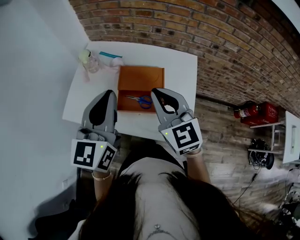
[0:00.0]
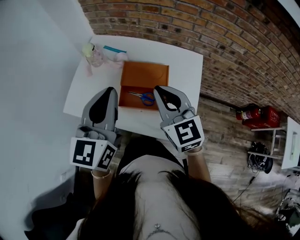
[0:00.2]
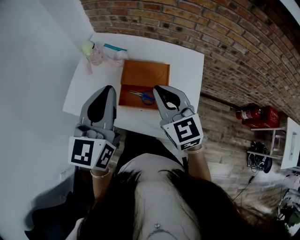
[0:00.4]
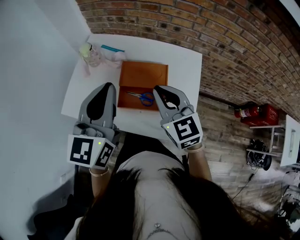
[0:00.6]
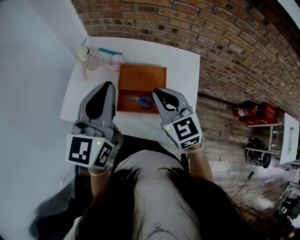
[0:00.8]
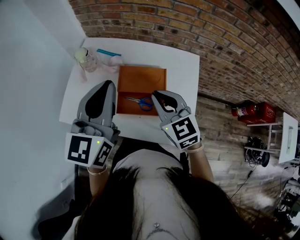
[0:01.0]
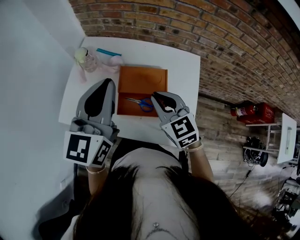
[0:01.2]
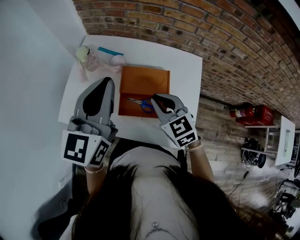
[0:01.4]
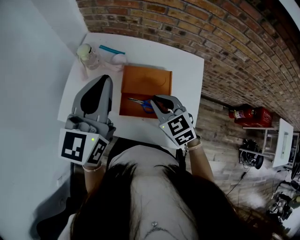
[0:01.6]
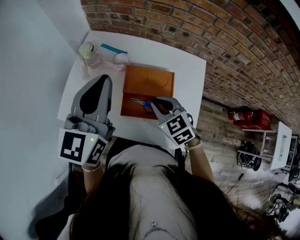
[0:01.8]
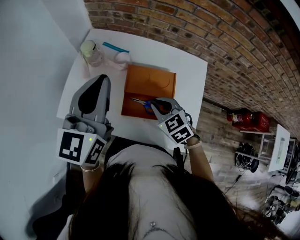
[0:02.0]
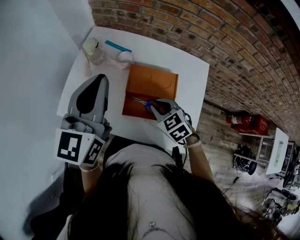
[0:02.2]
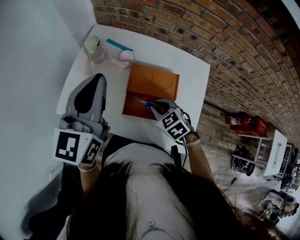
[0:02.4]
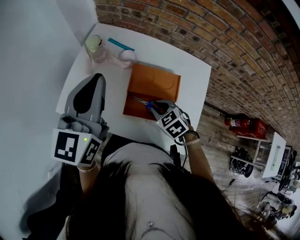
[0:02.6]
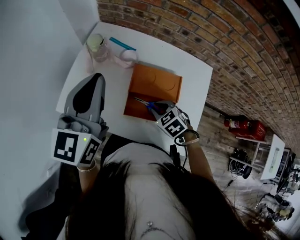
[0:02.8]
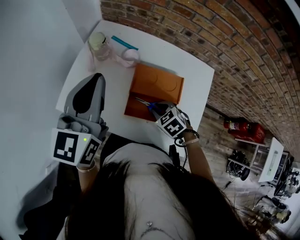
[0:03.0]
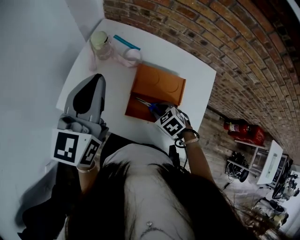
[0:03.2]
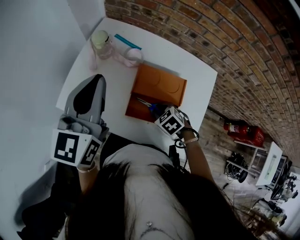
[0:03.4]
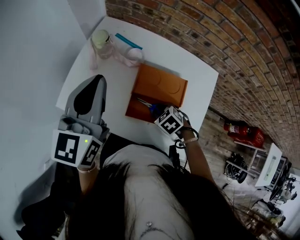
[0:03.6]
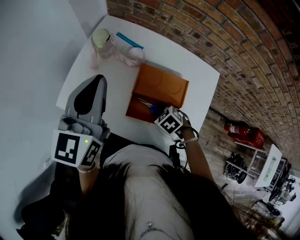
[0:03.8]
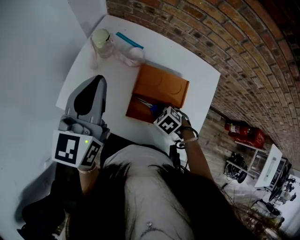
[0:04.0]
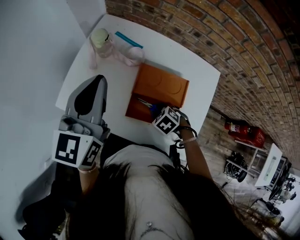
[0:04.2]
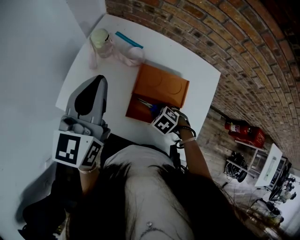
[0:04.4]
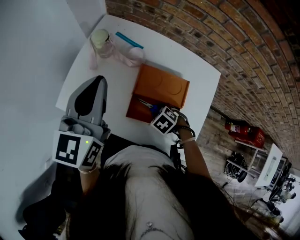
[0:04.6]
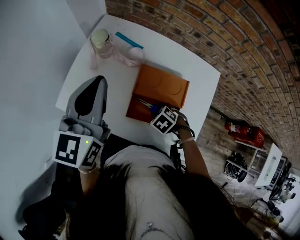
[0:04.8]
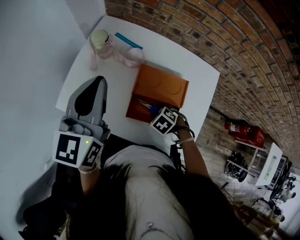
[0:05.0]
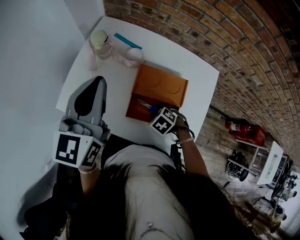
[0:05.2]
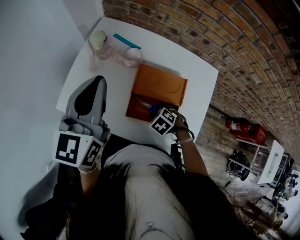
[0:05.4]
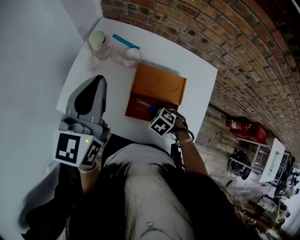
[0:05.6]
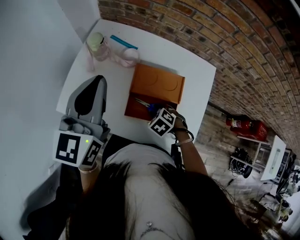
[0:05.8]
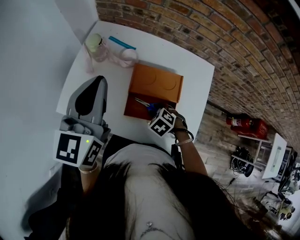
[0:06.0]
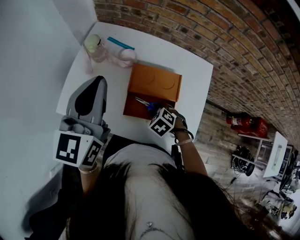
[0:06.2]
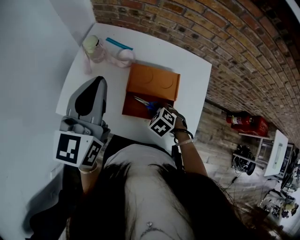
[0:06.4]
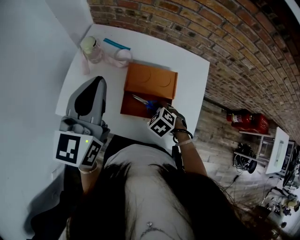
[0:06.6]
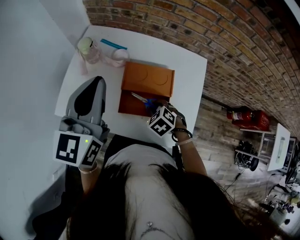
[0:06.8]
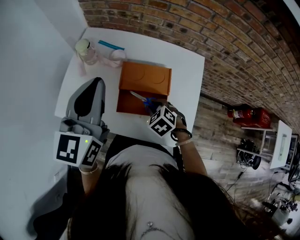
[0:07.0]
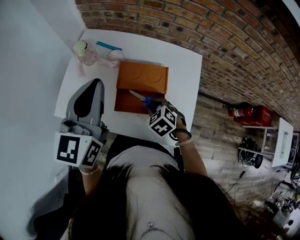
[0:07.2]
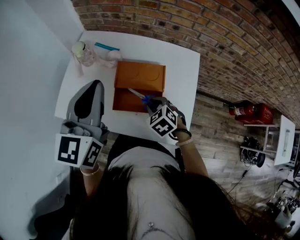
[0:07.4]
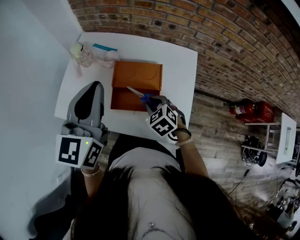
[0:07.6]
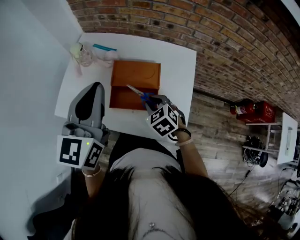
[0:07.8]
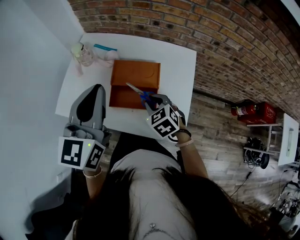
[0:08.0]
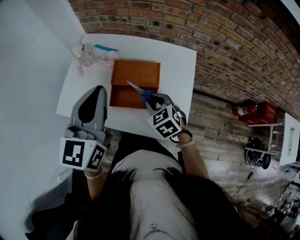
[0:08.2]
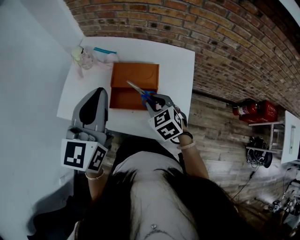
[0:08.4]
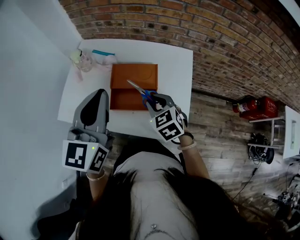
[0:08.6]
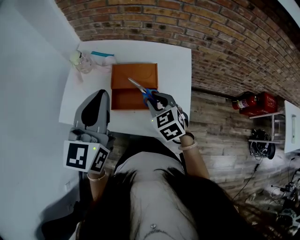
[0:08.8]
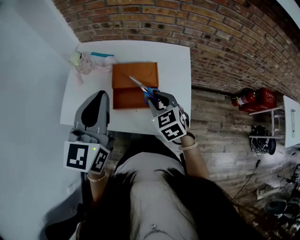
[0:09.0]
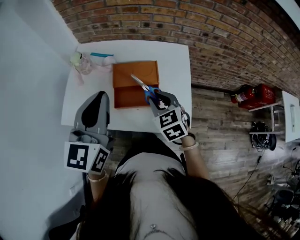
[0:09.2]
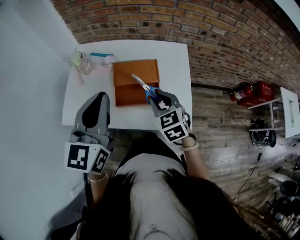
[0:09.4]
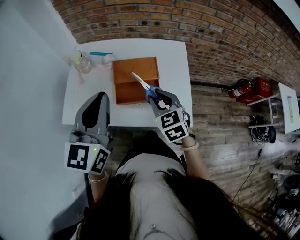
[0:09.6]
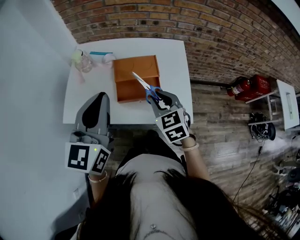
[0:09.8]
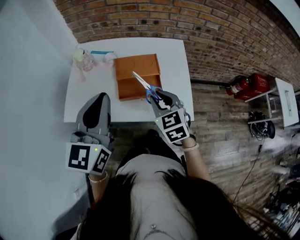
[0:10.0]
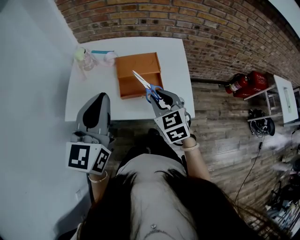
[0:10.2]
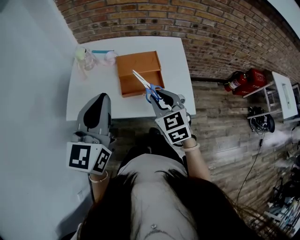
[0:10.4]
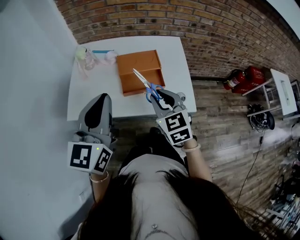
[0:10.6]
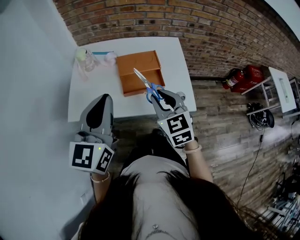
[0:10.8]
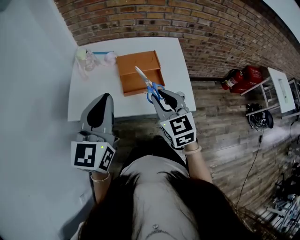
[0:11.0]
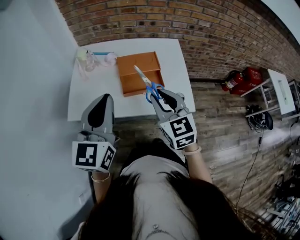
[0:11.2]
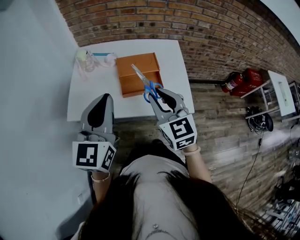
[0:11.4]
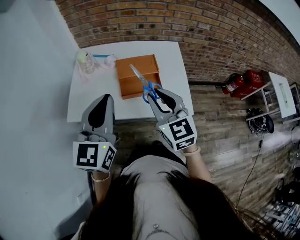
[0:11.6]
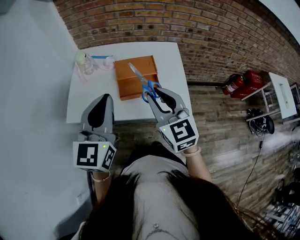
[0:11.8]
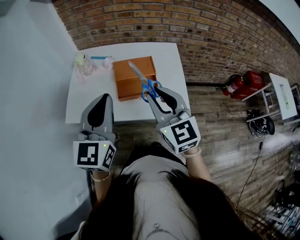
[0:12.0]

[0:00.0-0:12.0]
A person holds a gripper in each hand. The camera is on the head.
0:00.0 to 0:01.6: The left gripper shifts approximately 10 cm forward. The right gripper shifts some 15 cm downward and forward, and rotates about 20 degrees.
0:01.6 to 0:03.0: The left gripper moves to the left, roughly 5 cm, while the right gripper heads downward, covering some 15 cm, and tips its fingers downward by approximately 30 degrees.
0:03.0 to 0:04.4: The right gripper heads downward, covering about 5 cm.
0:04.4 to 0:06.0: There are only small adjustments of the grippers.
0:06.0 to 0:07.6: The left gripper moves approximately 10 cm, while the right gripper moves upward, roughly 10 cm, and rotates about 20 degrees.
0:07.6 to 0:09.0: The right gripper moves upward, roughly 10 cm, and changes its angle by some 20 degrees; the left gripper is displaced backward by some 5 cm.
0:09.0 to 0:10.4: Both grippers travel together backward and to the left, roughly 10 cm.
0:10.4 to 0:12.0: The right gripper goes roughly 10 cm upward, and rotates roughly 20 degrees.

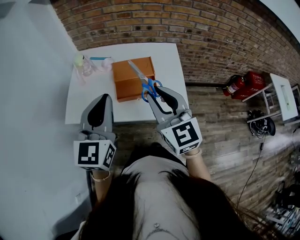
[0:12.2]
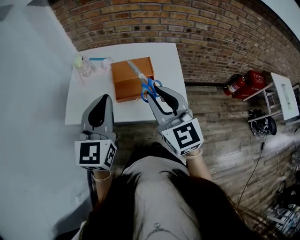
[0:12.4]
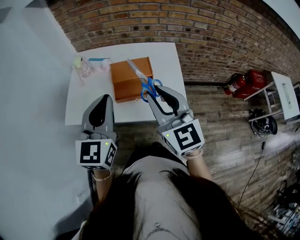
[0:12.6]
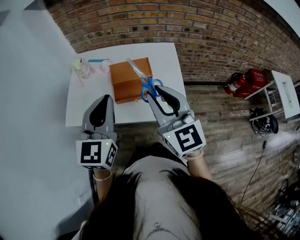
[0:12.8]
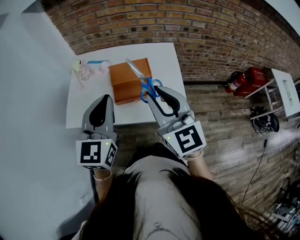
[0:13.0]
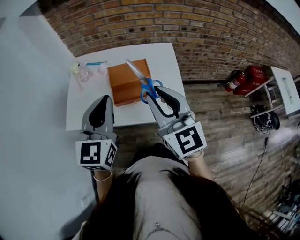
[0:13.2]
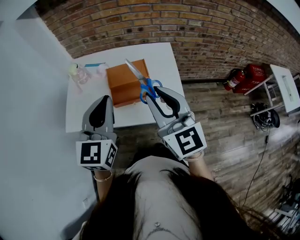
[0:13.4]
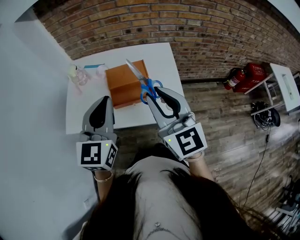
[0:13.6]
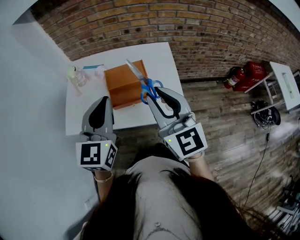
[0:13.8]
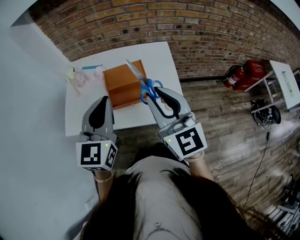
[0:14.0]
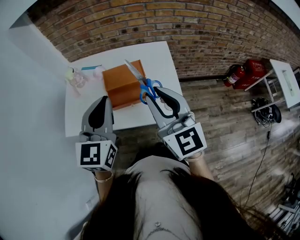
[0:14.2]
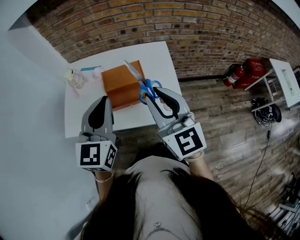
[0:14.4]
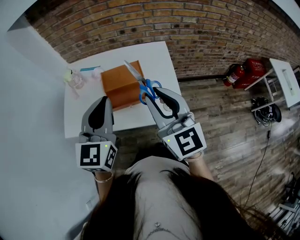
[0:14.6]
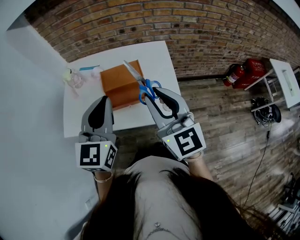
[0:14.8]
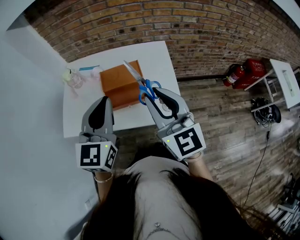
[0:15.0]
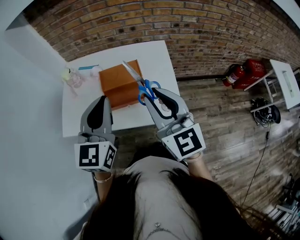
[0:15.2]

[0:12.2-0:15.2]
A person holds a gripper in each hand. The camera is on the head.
0:12.2 to 0:13.8: The left gripper changes place by some 5 cm, while the right gripper shifts by roughly 5 cm.
0:13.8 to 0:15.2: The grippers make only small movements.

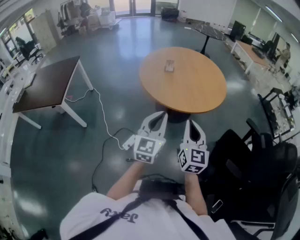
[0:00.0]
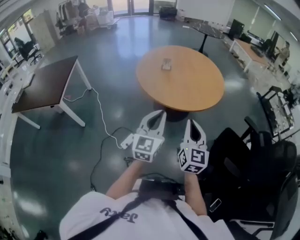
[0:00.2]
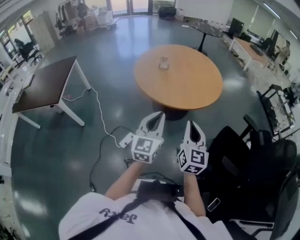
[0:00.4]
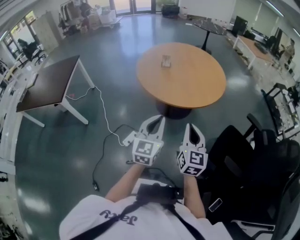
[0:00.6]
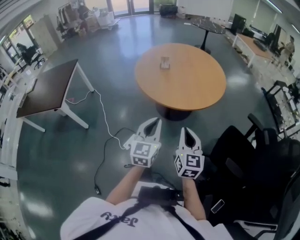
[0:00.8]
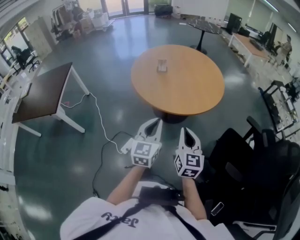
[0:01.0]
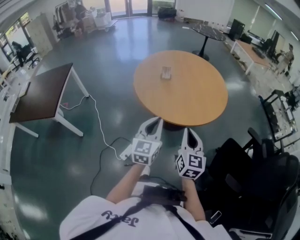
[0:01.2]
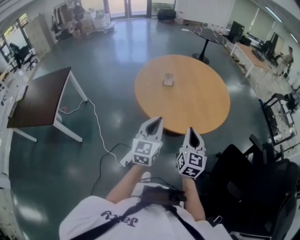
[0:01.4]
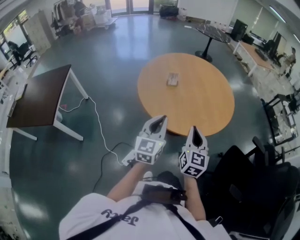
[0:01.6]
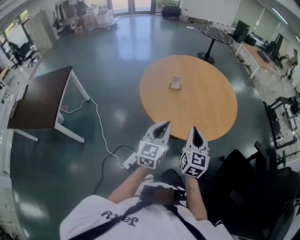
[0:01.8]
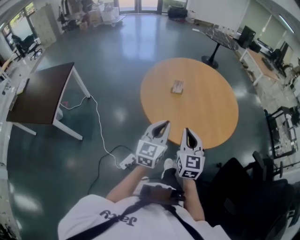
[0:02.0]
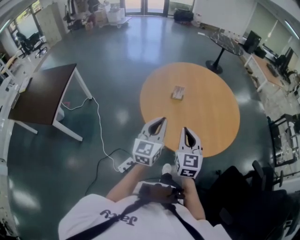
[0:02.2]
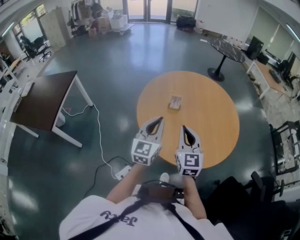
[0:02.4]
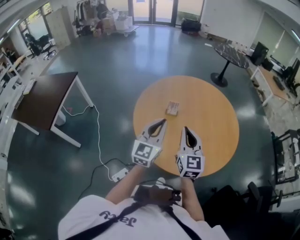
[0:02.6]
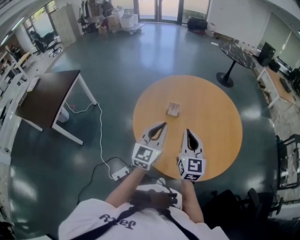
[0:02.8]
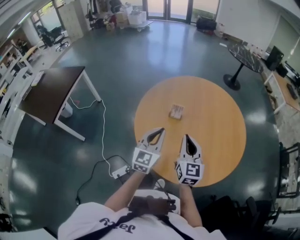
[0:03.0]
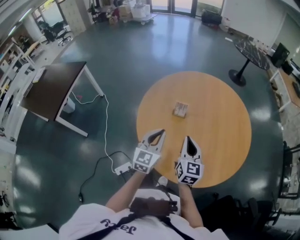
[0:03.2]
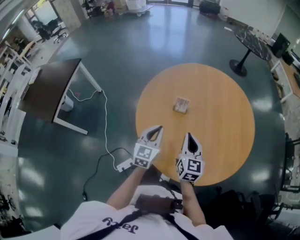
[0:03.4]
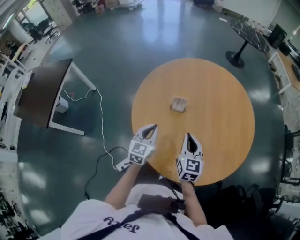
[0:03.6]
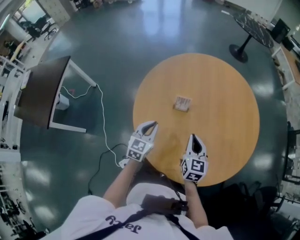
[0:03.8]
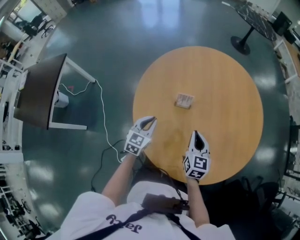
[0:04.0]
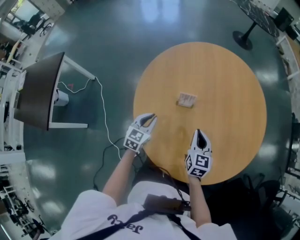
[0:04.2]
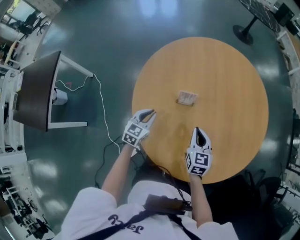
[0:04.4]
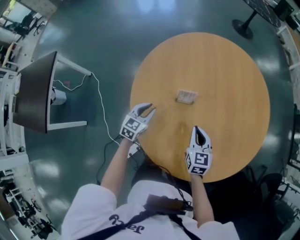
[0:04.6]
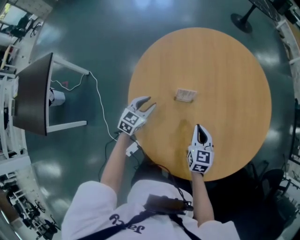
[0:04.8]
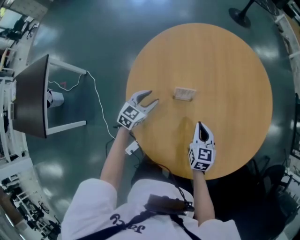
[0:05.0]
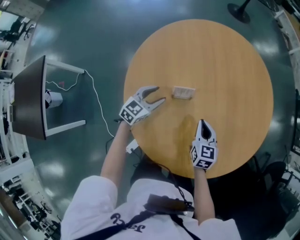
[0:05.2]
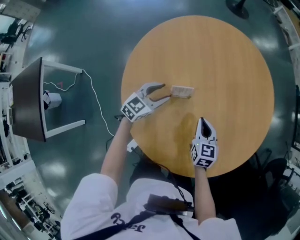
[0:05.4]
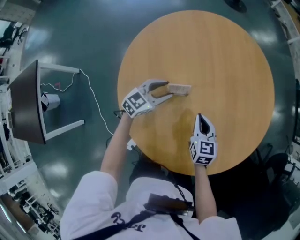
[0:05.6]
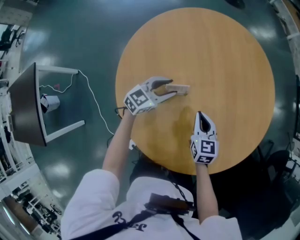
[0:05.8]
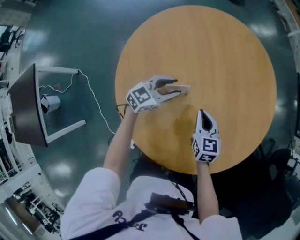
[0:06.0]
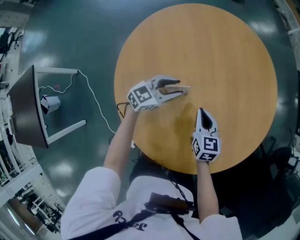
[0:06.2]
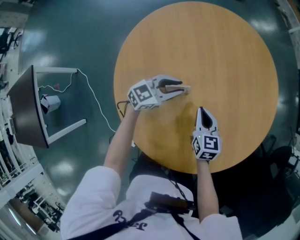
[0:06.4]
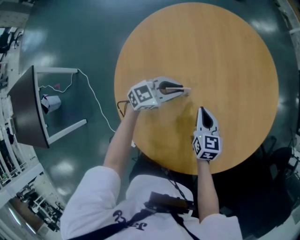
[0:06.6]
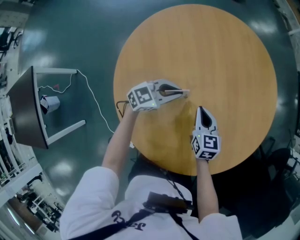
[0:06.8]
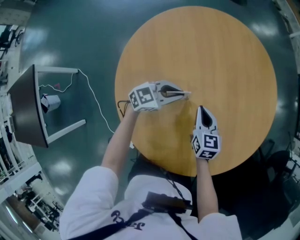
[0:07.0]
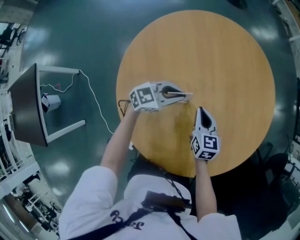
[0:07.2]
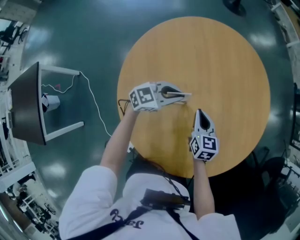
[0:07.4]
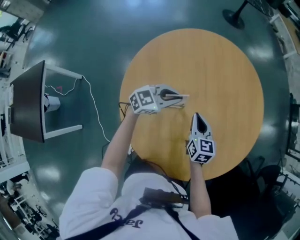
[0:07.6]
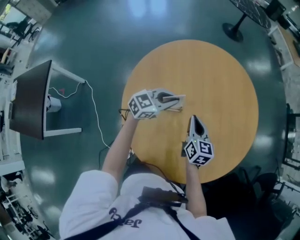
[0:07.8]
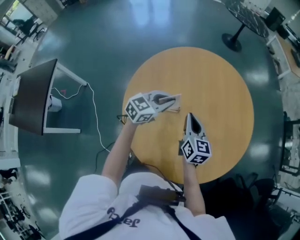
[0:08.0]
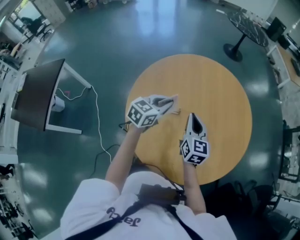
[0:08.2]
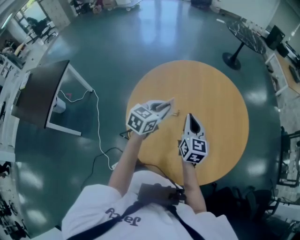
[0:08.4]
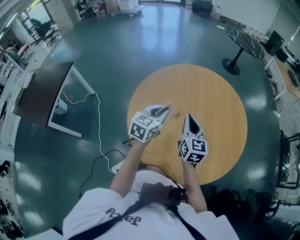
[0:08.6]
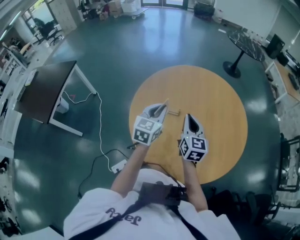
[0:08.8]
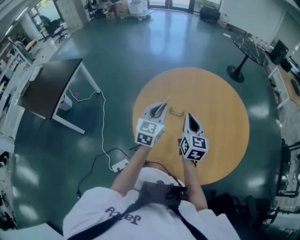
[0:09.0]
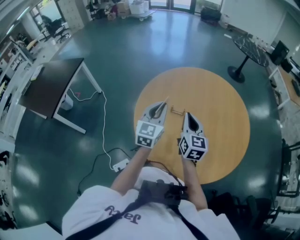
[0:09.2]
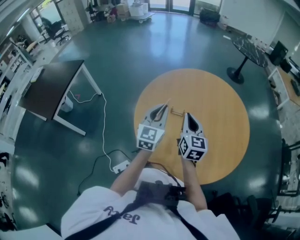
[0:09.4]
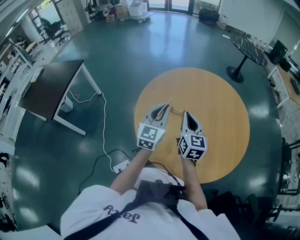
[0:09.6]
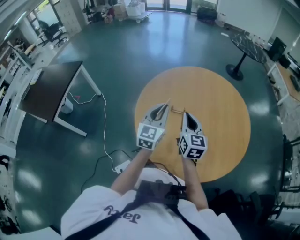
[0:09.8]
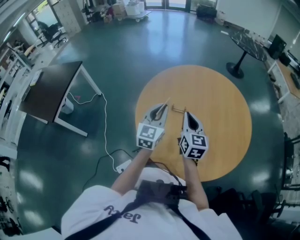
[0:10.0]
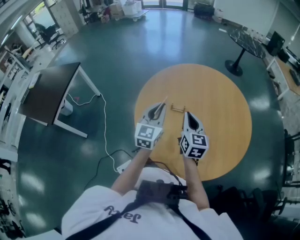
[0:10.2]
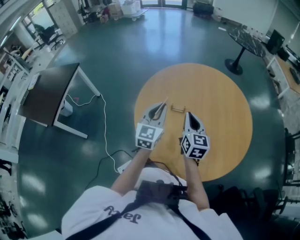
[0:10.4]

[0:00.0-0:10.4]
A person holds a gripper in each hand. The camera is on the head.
0:00.0 to 0:01.4: The two grippers go roughly 15 cm forward.
0:01.4 to 0:03.0: Both grippers travel together forward, approximately 25 cm. The right gripper swivels about 30 degrees.
0:03.0 to 0:04.4: The left gripper is displaced downward, forward and to the left by roughly 30 cm, and rotates roughly 30 degrees, while the right gripper moves downward and forward, approximately 20 cm, and swivels some 30 degrees.
0:04.4 to 0:06.0: The left gripper goes some 15 cm forward and to the right, rotates some 40 degrees, and opens; the right gripper shifts approximately 5 cm forward.
0:06.0 to 0:07.4: The left gripper shifts approximately 5 cm upward, and closes its fingers.
0:07.4 to 0:09.0: The grippers both shift upward by roughly 15 cm. The left gripper changes its angle by about 70 degrees; the right gripper swivels about 30 degrees.
0:09.0 to 0:10.4: The grippers make only small movements.
